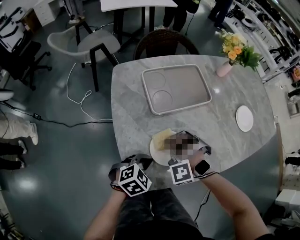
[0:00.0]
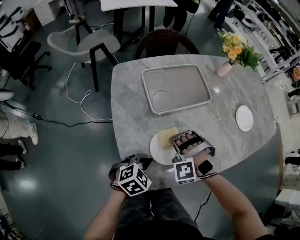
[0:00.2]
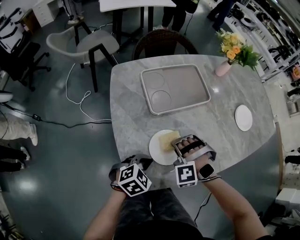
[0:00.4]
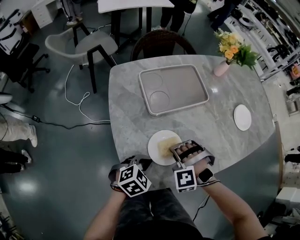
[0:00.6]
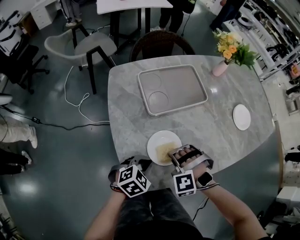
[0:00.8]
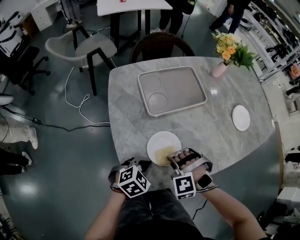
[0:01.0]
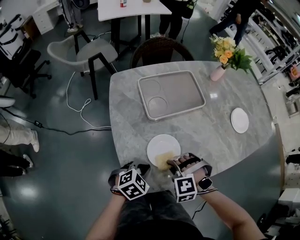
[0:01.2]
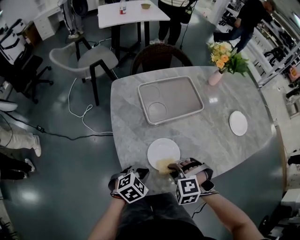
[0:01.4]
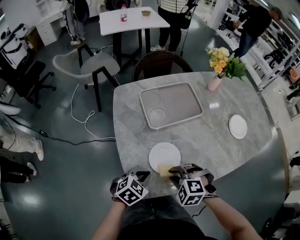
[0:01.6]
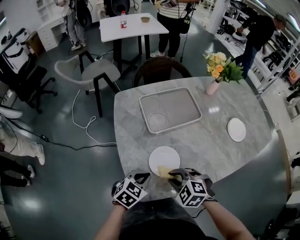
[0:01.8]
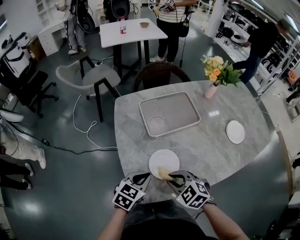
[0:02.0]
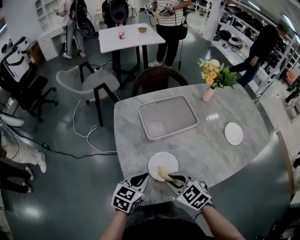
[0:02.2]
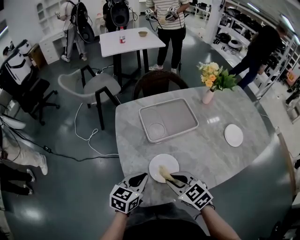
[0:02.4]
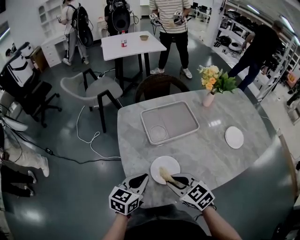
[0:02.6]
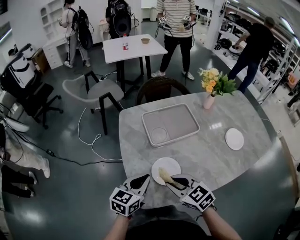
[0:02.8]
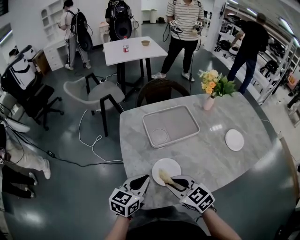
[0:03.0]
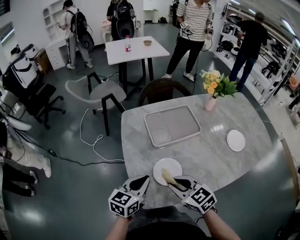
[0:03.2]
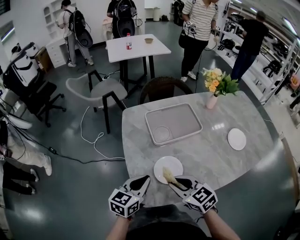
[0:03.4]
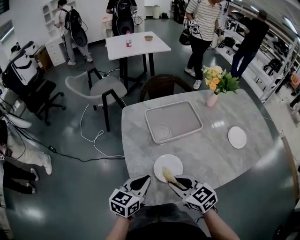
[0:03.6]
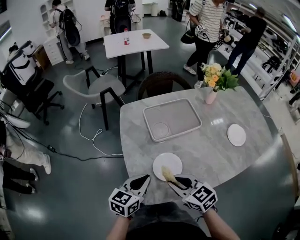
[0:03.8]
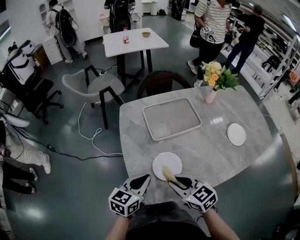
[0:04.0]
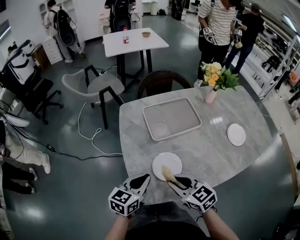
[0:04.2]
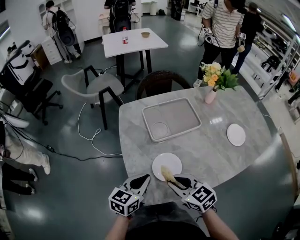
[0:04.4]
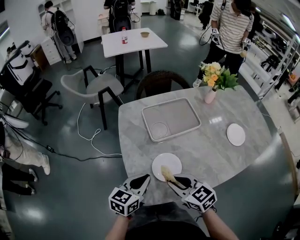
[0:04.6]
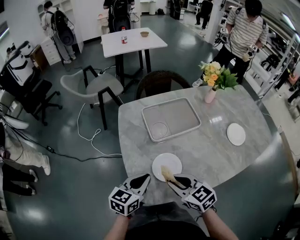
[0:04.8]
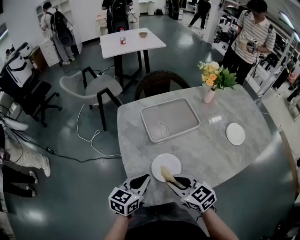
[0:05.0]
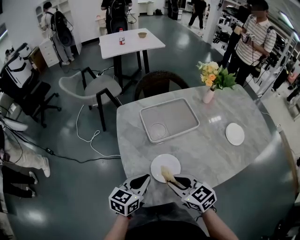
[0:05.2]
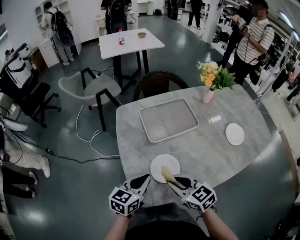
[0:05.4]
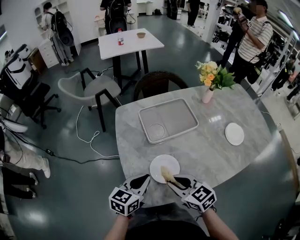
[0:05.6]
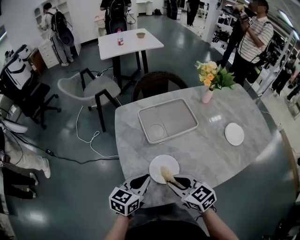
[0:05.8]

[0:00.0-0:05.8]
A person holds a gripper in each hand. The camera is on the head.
0:00.0 to 0:01.4: The right gripper goes roughly 10 cm to the right and backward, and rotates about 30 degrees.
0:01.4 to 0:02.8: The grippers both shift upward by some 10 cm. The left gripper angles its fingers upward, by roughly 30 degrees. Meanwhile the right gripper points its fingers approximately 40 degrees further upward.
0:02.8 to 0:05.8: The grippers stay close to where they were, moving slightly.

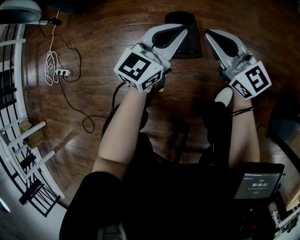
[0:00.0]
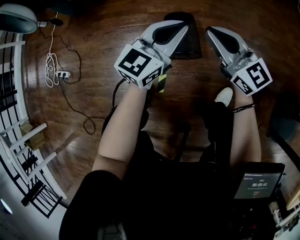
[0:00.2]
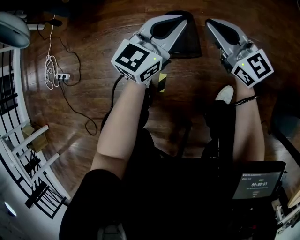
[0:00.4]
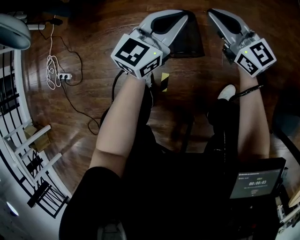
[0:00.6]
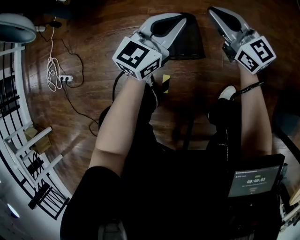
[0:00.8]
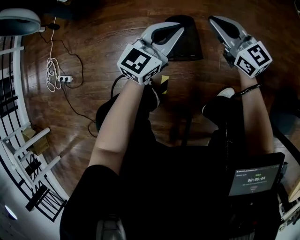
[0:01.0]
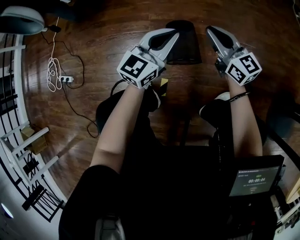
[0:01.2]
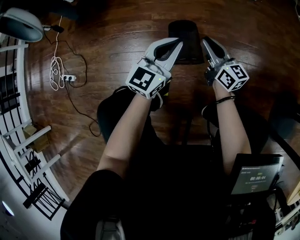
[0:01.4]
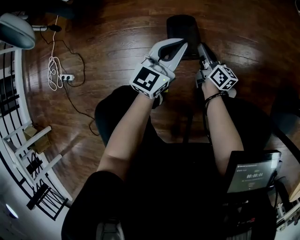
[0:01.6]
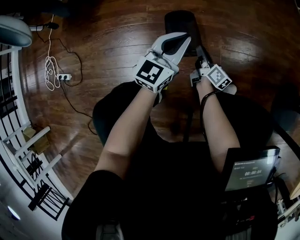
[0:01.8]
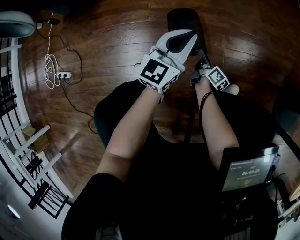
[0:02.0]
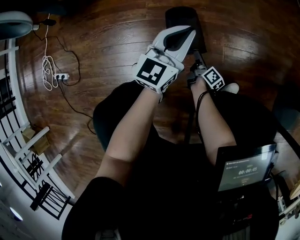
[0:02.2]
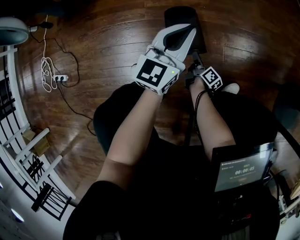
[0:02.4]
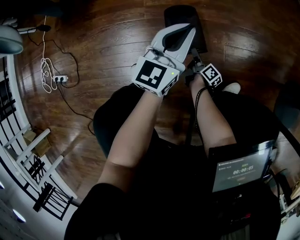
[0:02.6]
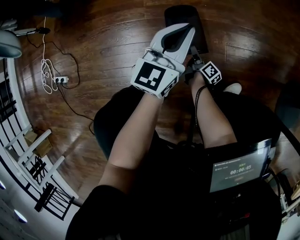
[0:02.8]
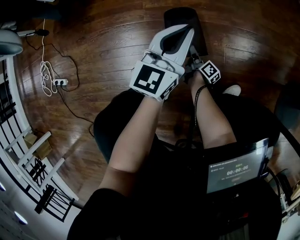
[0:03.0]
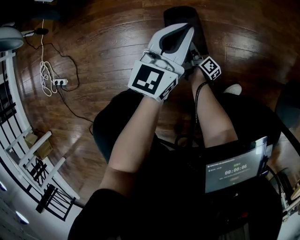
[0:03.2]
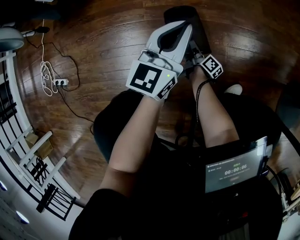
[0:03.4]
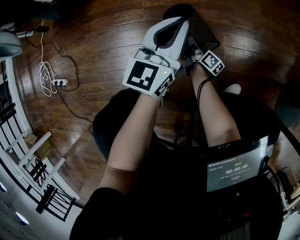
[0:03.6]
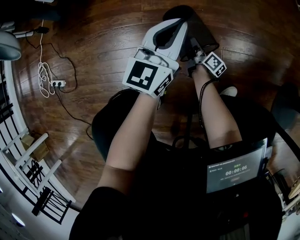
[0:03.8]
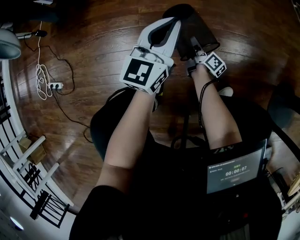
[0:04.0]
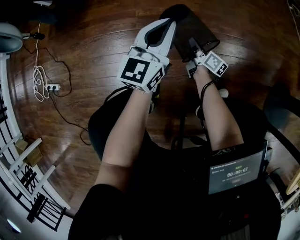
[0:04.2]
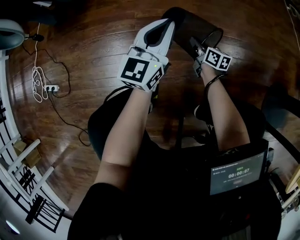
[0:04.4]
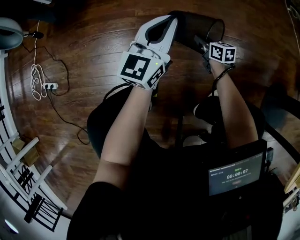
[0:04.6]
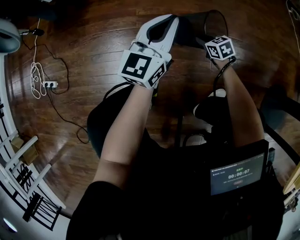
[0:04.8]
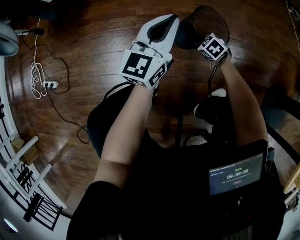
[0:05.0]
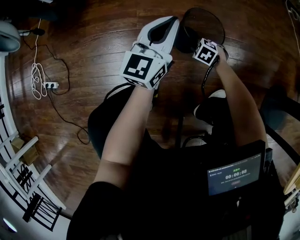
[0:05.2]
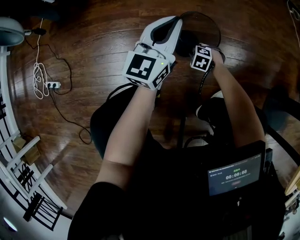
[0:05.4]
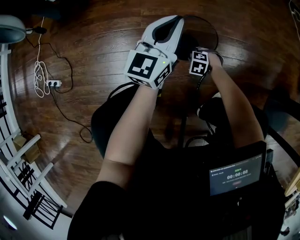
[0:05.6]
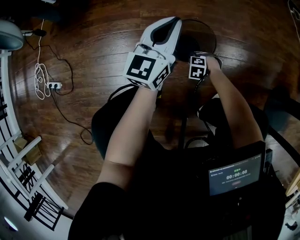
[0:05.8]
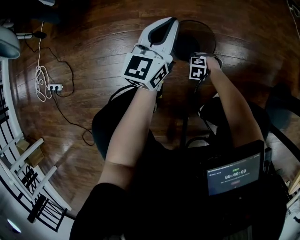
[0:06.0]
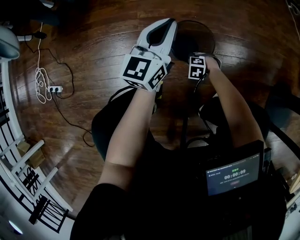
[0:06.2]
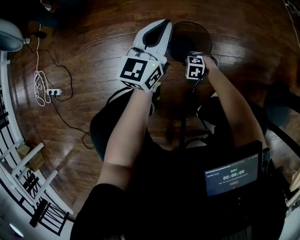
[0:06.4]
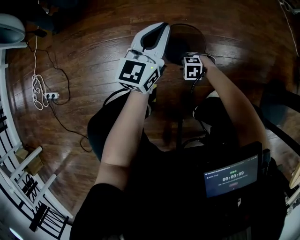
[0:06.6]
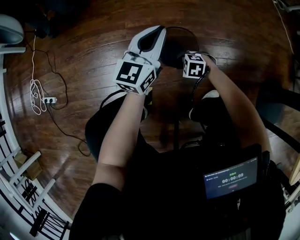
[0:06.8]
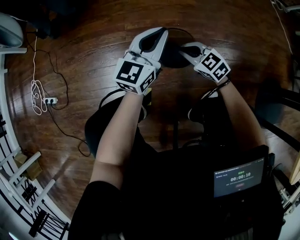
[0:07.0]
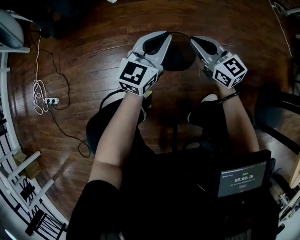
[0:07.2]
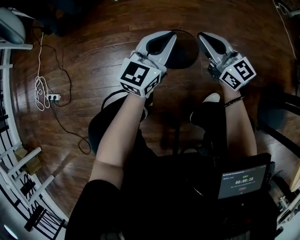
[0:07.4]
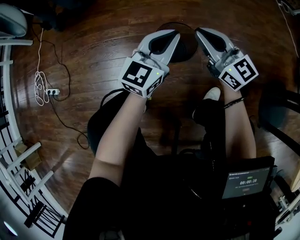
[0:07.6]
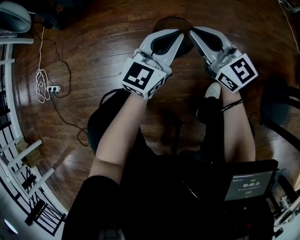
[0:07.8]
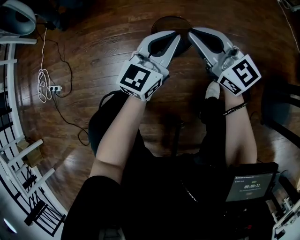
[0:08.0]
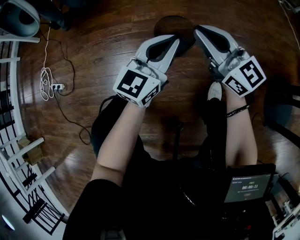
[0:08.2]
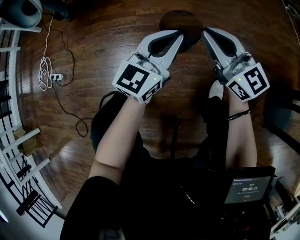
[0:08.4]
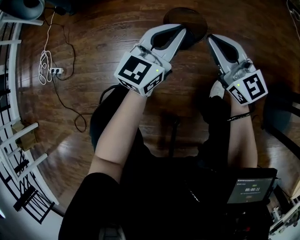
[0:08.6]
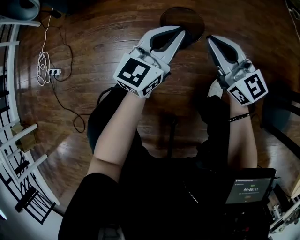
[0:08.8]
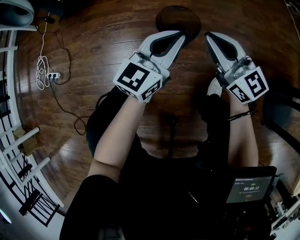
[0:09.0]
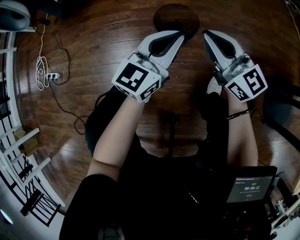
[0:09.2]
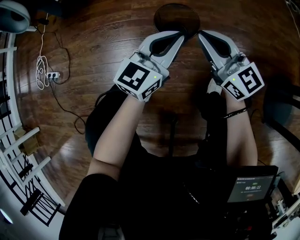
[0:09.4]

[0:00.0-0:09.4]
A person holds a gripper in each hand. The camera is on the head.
0:00.0 to 0:01.6: The right gripper goes some 20 cm downward, and rotates around the line of its fingers by roughly 40 degrees, clockwise from behind.
0:01.6 to 0:03.2: The left gripper moves forward, some 5 cm. Meanwhile the right gripper goes some 20 cm downward, and changes its angle by about 40 degrees.
0:03.2 to 0:04.8: The left gripper changes place by approximately 5 cm. Meanwhile the right gripper shifts roughly 10 cm upward and forward, rolls counterclockwise, seen from behind, by approximately 80 degrees, and closes.
0:04.8 to 0:06.2: The right gripper ends up some 15 cm from where it was, and rotates around the line of its fingers by about 50 degrees, counterclockwise from behind.
0:06.2 to 0:07.8: The left gripper ends up about 15 cm from where it was; the right gripper shifts approximately 40 cm upward, points its fingers some 80 degrees further upward, and opens and closes again.
0:07.8 to 0:09.4: The left gripper changes place by roughly 5 cm. The right gripper shifts roughly 5 cm backward.

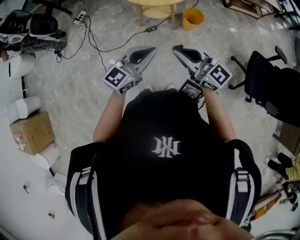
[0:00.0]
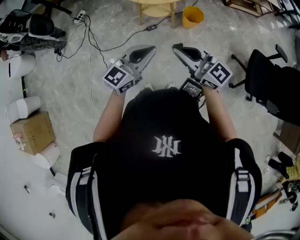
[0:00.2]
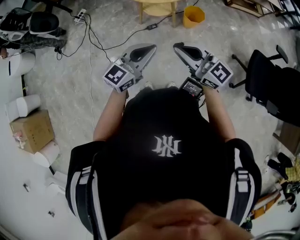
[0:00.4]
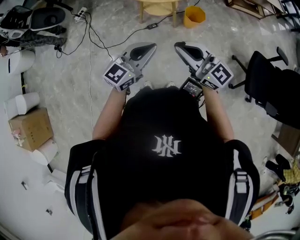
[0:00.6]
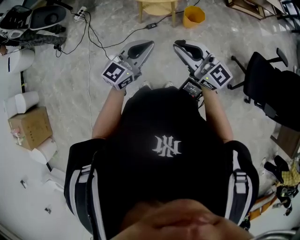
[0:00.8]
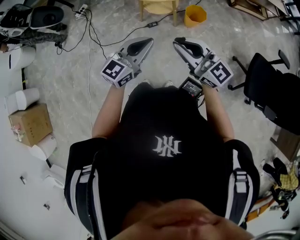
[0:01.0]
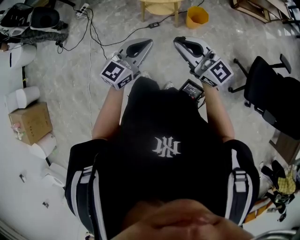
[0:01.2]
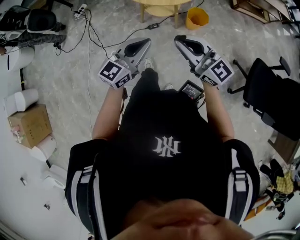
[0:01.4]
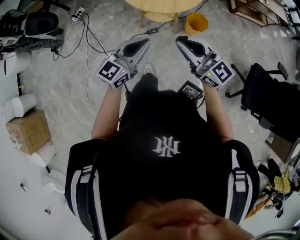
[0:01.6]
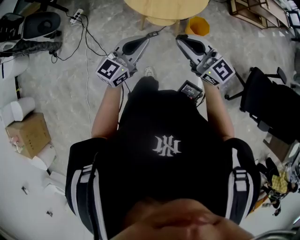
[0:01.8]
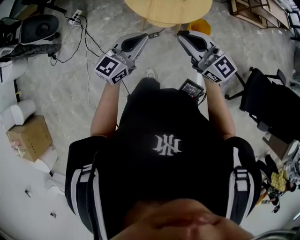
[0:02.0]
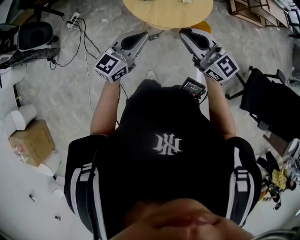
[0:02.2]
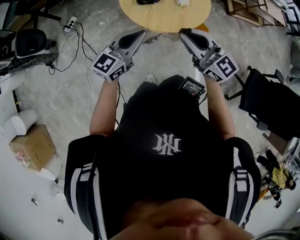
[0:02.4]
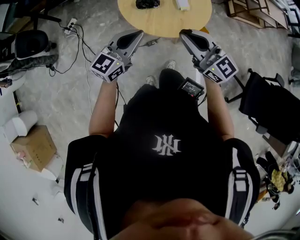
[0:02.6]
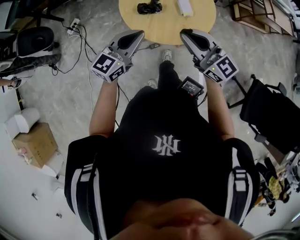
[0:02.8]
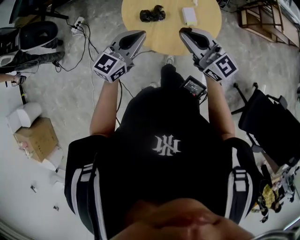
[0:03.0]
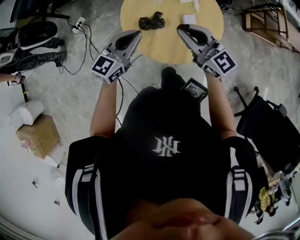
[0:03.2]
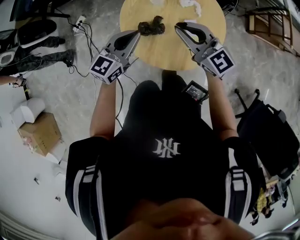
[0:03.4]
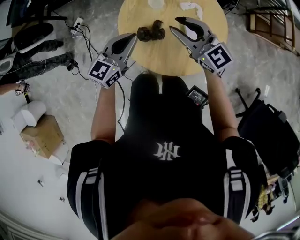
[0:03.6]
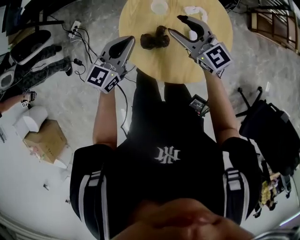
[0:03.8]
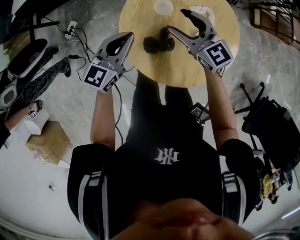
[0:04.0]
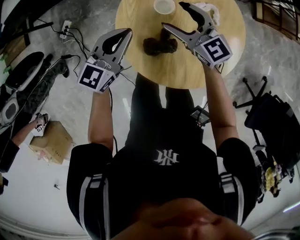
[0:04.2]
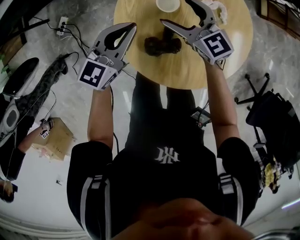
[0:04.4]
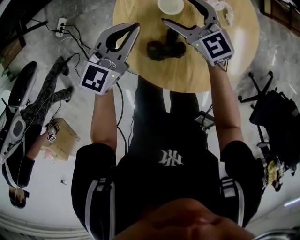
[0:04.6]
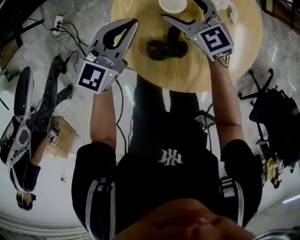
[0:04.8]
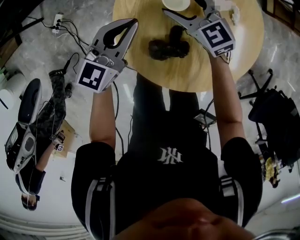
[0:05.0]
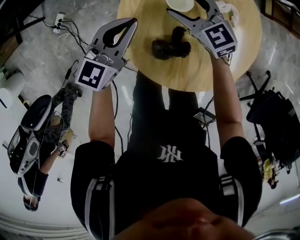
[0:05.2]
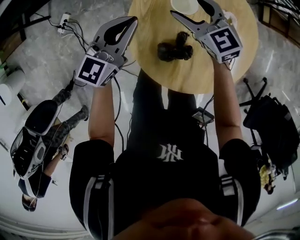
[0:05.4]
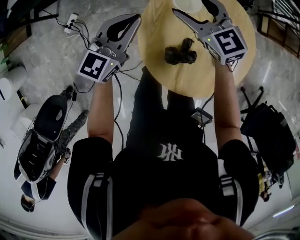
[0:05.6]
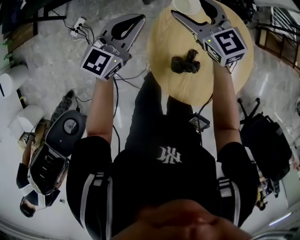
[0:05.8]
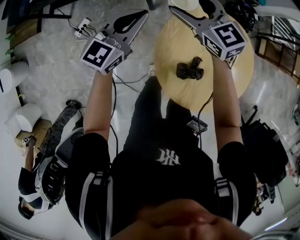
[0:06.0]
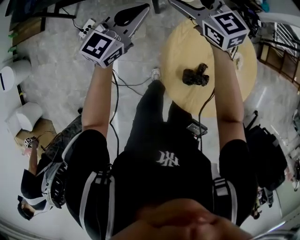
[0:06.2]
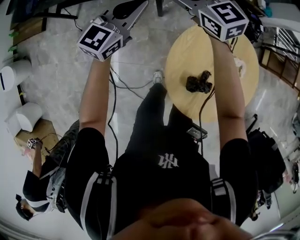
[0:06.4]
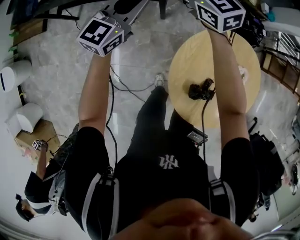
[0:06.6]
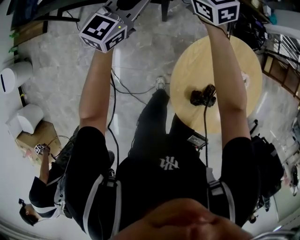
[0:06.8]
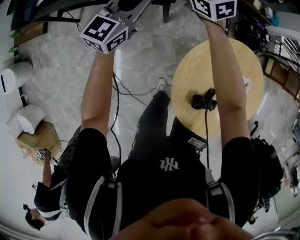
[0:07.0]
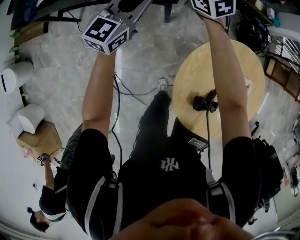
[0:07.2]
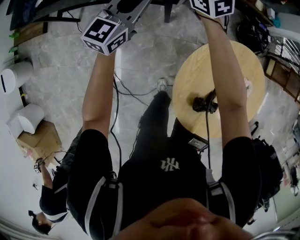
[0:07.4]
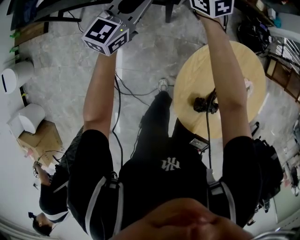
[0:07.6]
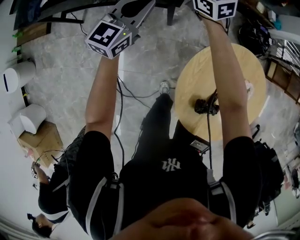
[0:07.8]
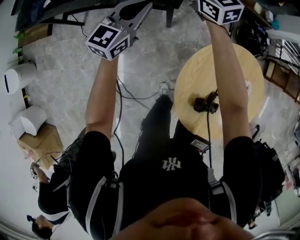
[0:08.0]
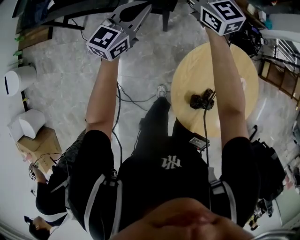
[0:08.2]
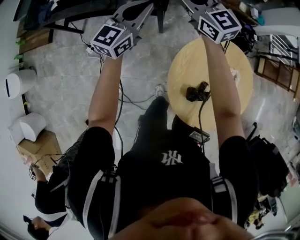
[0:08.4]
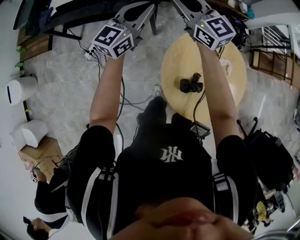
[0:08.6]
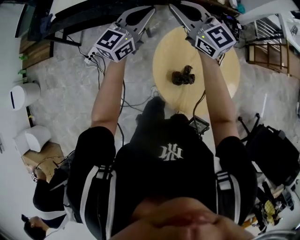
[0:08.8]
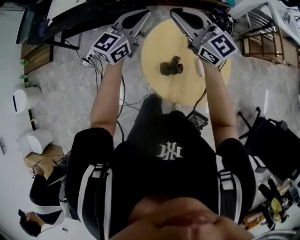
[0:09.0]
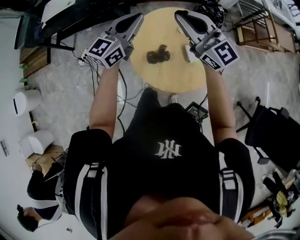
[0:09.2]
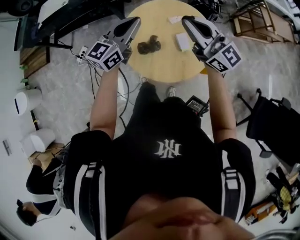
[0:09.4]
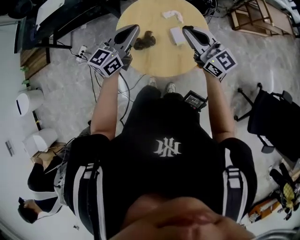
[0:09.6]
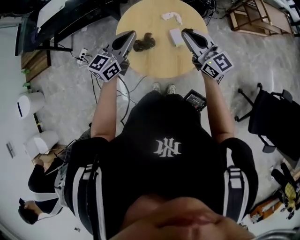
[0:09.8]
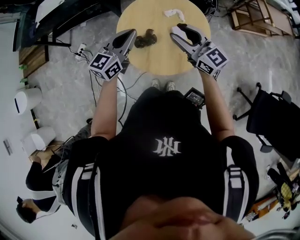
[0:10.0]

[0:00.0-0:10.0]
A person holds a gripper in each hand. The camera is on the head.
0:00.0 to 0:01.4: Both grippers travel together forward, approximately 10 cm.
0:01.4 to 0:02.8: The grippers both shift forward by some 35 cm.
0:02.8 to 0:04.2: The left gripper goes roughly 30 cm forward; the right gripper heads forward and downward, covering approximately 40 cm, and opens.
0:04.2 to 0:05.8: The right gripper travels to the left, forward and upward by roughly 15 cm; the left gripper is displaced forward, to the left and upward by roughly 15 cm.
0:05.8 to 0:07.2: The grippers both shift forward and to the left by roughly 25 cm.
0:07.2 to 0:08.6: The grippers both shift upward, backward and to the right by approximately 20 cm. The right gripper closes up.
0:08.6 to 0:10.0: The grippers both shift backward and to the right by approximately 40 cm. The right gripper opens.
